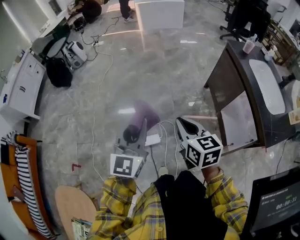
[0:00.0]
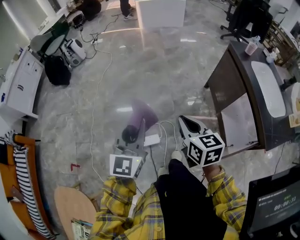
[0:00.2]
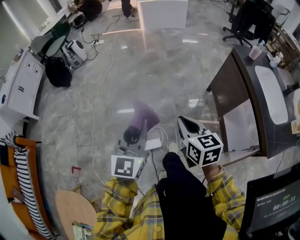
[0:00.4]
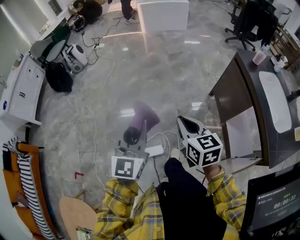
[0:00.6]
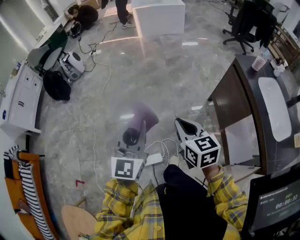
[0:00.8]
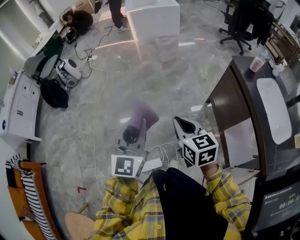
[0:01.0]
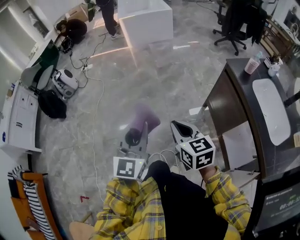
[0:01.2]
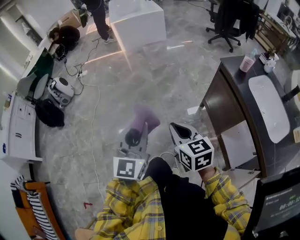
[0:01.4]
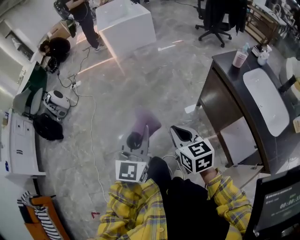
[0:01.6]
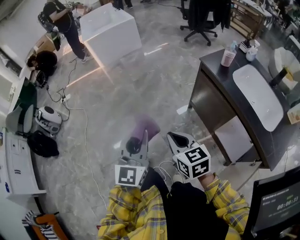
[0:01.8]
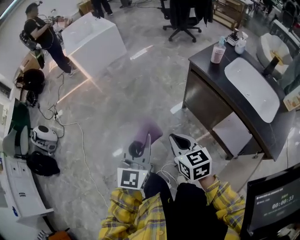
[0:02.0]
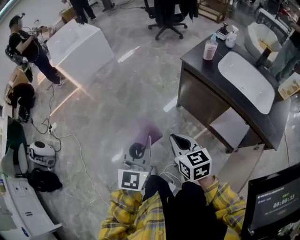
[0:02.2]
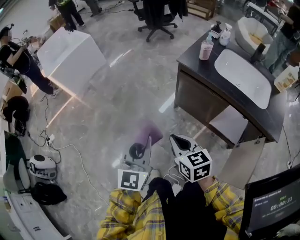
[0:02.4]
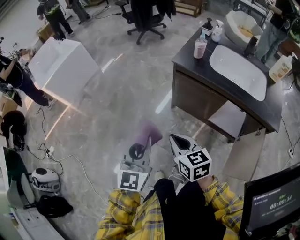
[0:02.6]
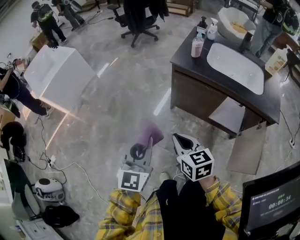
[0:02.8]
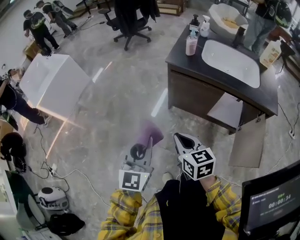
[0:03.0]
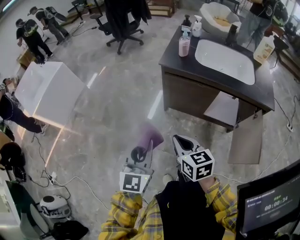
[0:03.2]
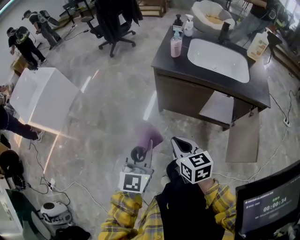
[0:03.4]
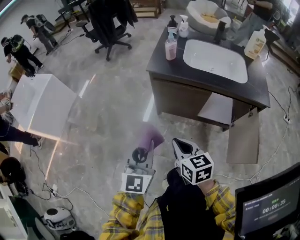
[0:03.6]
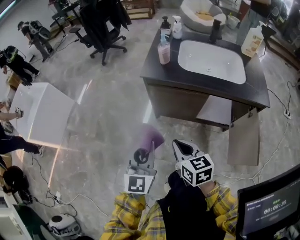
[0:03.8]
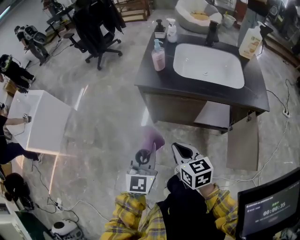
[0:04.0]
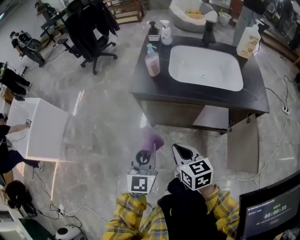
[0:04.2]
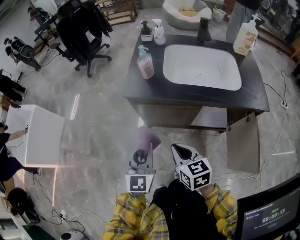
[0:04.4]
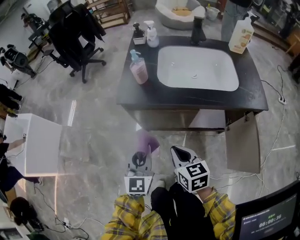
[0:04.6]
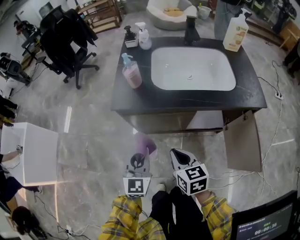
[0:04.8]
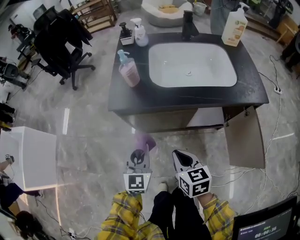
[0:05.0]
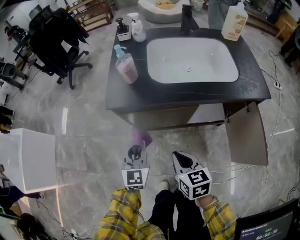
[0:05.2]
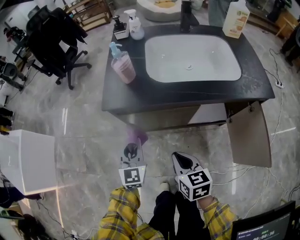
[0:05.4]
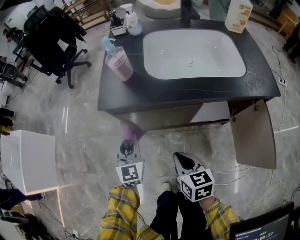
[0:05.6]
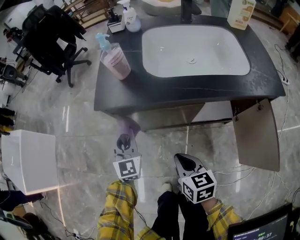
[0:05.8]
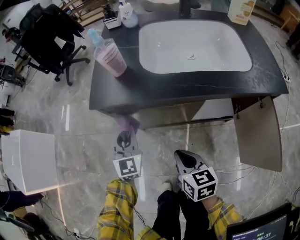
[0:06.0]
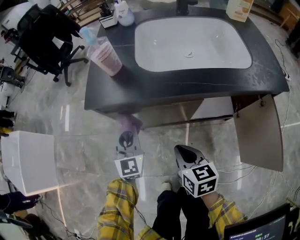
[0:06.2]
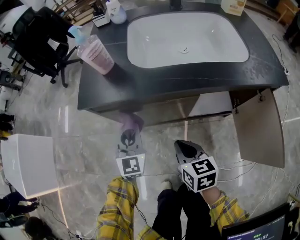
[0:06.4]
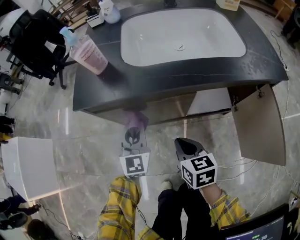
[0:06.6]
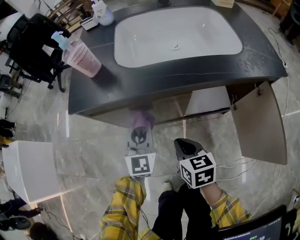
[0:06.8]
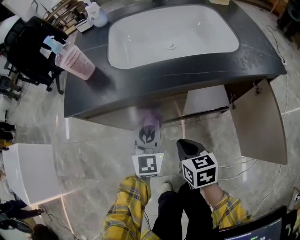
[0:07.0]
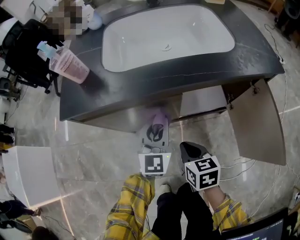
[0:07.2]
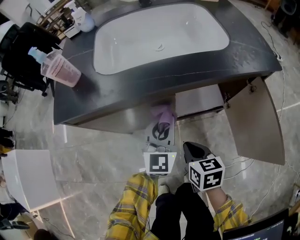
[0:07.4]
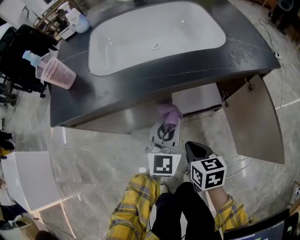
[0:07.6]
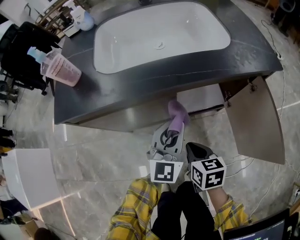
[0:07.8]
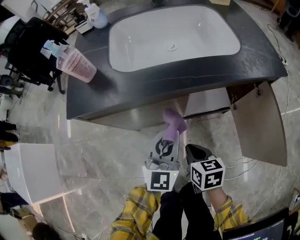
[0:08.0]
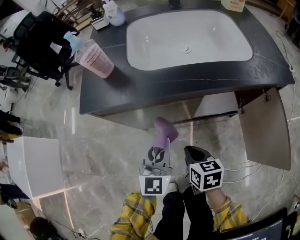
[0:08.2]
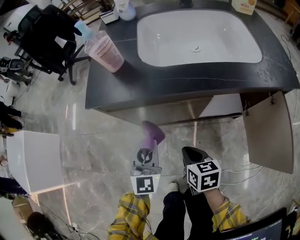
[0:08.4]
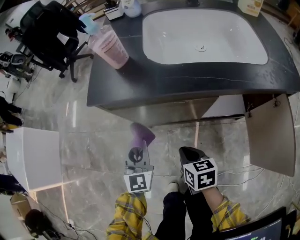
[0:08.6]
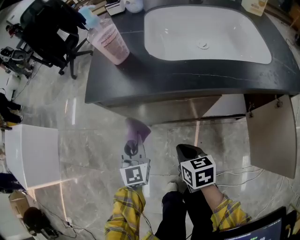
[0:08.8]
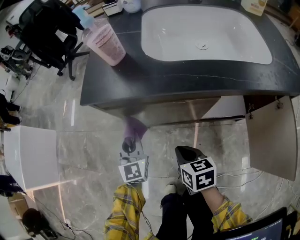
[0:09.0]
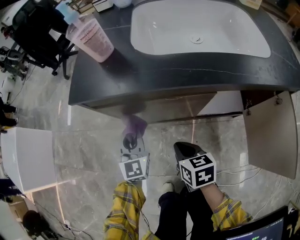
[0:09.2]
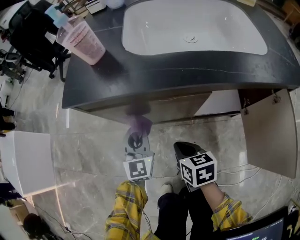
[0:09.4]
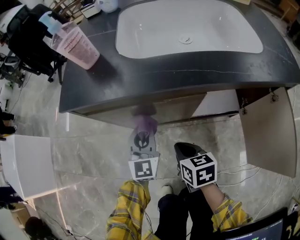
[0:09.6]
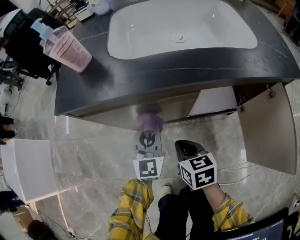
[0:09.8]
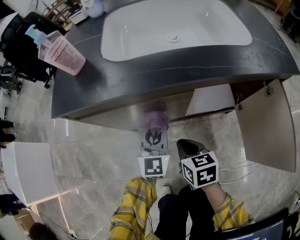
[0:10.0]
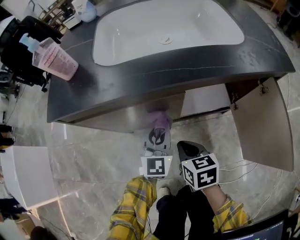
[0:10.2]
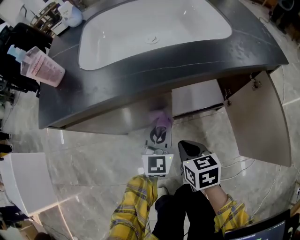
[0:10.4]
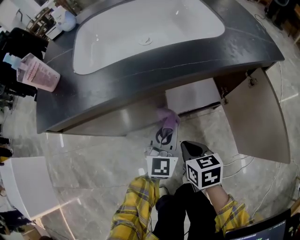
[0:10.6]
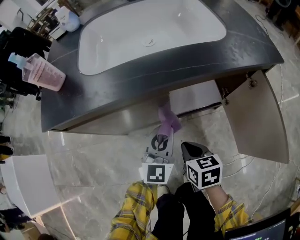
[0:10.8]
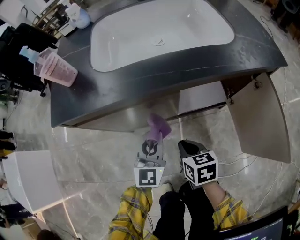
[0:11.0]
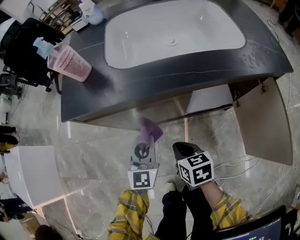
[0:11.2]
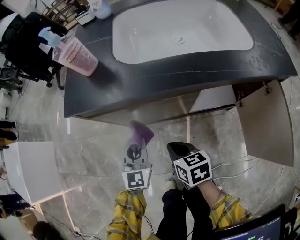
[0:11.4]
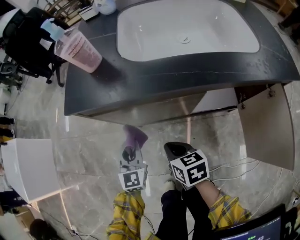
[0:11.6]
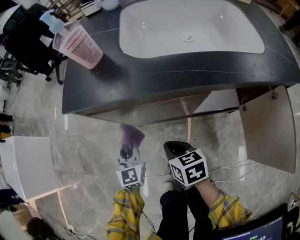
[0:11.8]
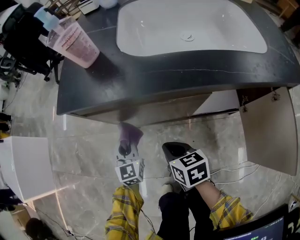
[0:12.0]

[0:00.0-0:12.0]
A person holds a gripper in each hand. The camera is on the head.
0.0 to 1.6 s: Both grippers move forward, approximately 30 cm.
1.6 to 3.0 s: The right gripper shifts by about 15 cm, and swivels about 50 degrees, while the left gripper moves about 20 cm, and swivels about 40 degrees.
3.0 to 4.4 s: The left gripper heads forward, to the right and downward, covering roughly 25 cm, while the right gripper moves forward and to the right, roughly 20 cm.
4.4 to 6.0 s: The left gripper moves forward and downward, some 25 cm. Meanwhile the right gripper is displaced downward by roughly 15 cm.
6.0 to 7.6 s: The left gripper goes some 30 cm to the right, and changes its angle by approximately 30 degrees, while the right gripper moves to the right and downward, some 20 cm.
7.6 to 9.0 s: The right gripper ends up some 15 cm from where it was. The left gripper shifts by roughly 30 cm, and changes its angle by some 40 degrees.
9.0 to 10.4 s: The right gripper moves to the right, roughly 15 cm; the left gripper shifts some 25 cm to the right, and swivels approximately 30 degrees.
10.4 to 12.0 s: The right gripper ends up some 15 cm from where it was, while the left gripper ends up some 25 cm from where it was, and turns by approximately 30 degrees.

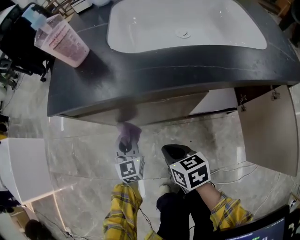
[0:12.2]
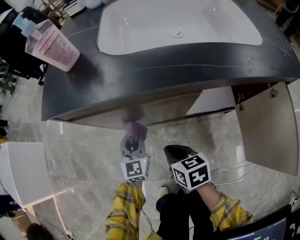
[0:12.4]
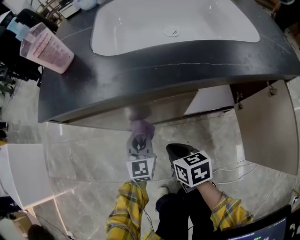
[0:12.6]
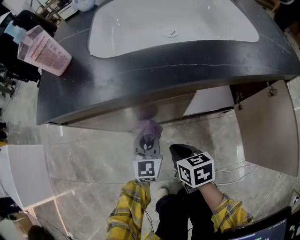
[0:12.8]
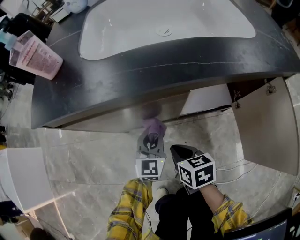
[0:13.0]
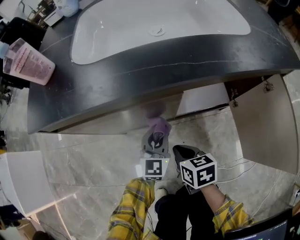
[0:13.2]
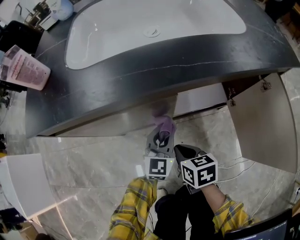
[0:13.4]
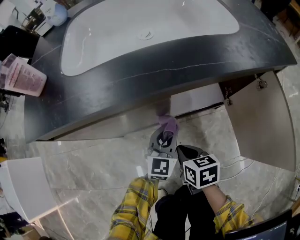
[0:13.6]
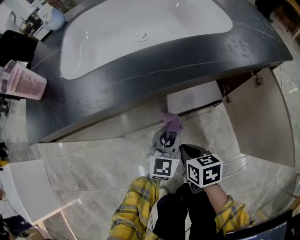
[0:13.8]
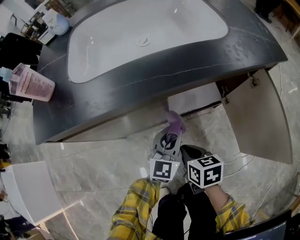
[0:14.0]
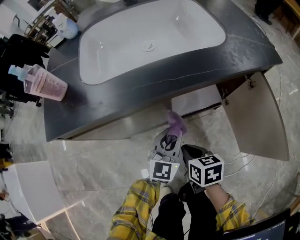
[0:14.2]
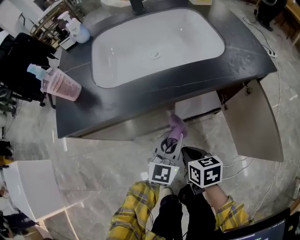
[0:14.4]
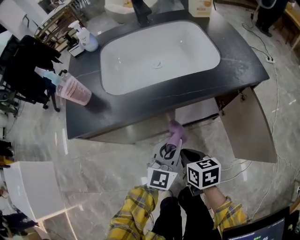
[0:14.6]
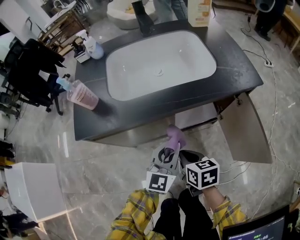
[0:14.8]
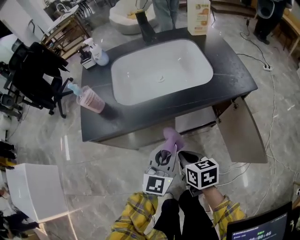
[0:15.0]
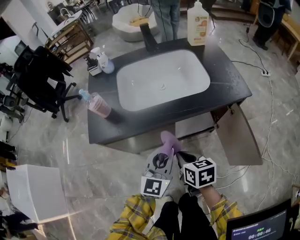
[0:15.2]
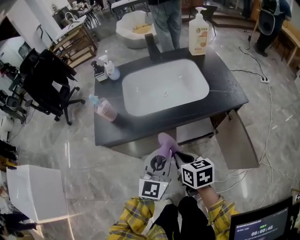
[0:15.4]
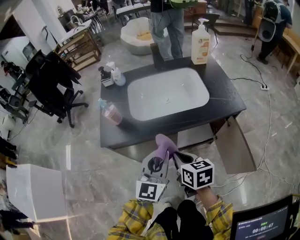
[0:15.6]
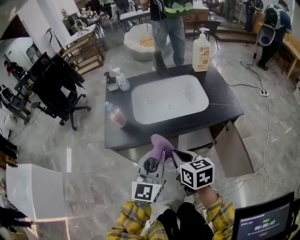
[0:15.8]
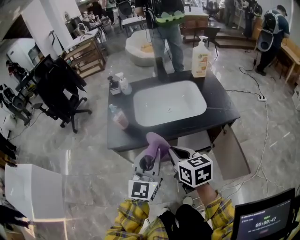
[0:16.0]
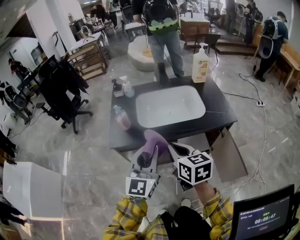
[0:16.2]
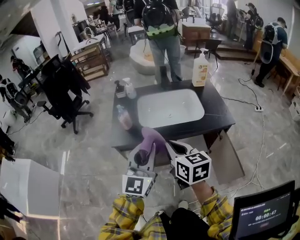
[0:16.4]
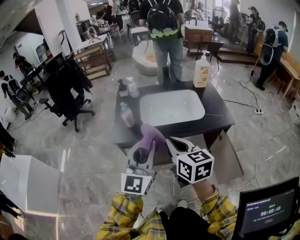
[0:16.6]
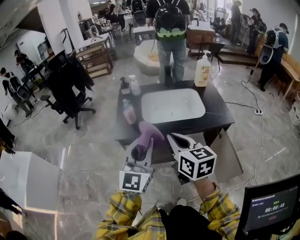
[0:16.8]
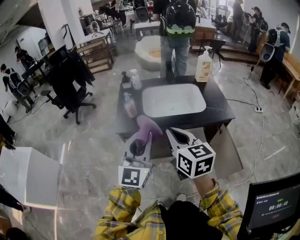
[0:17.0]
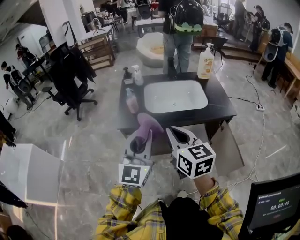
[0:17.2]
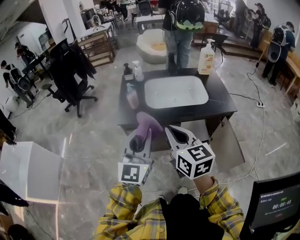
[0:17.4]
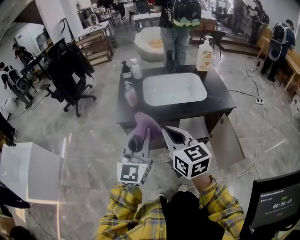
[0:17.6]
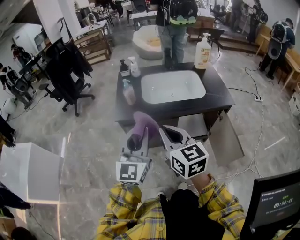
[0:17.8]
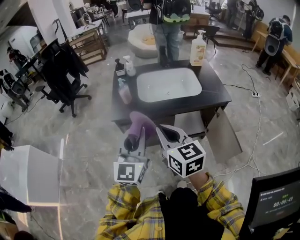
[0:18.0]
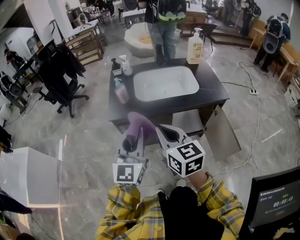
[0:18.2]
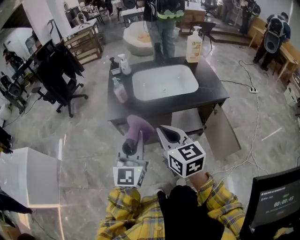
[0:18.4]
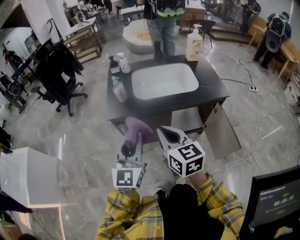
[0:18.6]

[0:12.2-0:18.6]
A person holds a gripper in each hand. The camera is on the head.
12.2 to 13.8 s: The left gripper shifts by approximately 30 cm, and rotates some 40 degrees, while the right gripper ends up approximately 15 cm from where it was, and turns by some 20 degrees.
13.8 to 15.4 s: The grippers both shift upward by roughly 30 cm.
15.4 to 17.0 s: The left gripper is displaced upward and to the left by roughly 25 cm, and rotates some 20 degrees, while the right gripper heads upward, covering roughly 30 cm, and turns by some 30 degrees.
17.0 to 18.6 s: The grippers both shift downward by some 5 cm.

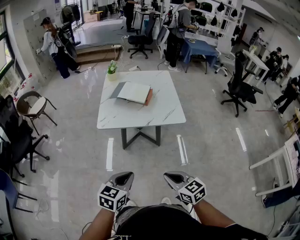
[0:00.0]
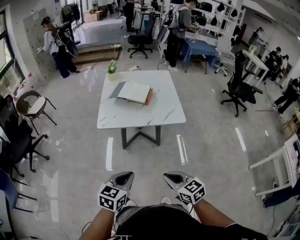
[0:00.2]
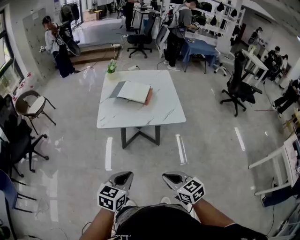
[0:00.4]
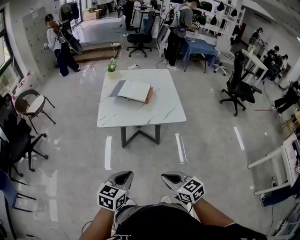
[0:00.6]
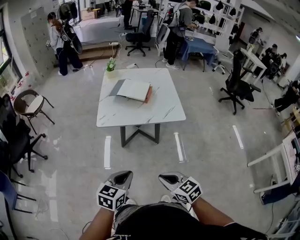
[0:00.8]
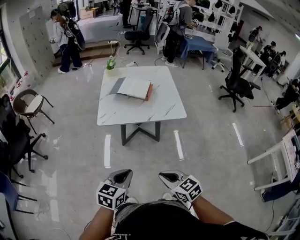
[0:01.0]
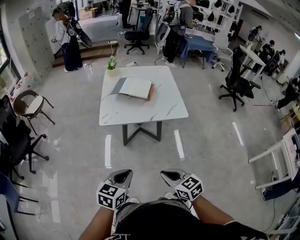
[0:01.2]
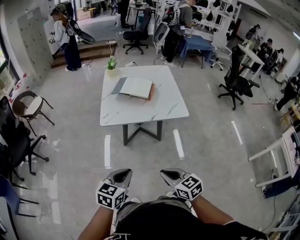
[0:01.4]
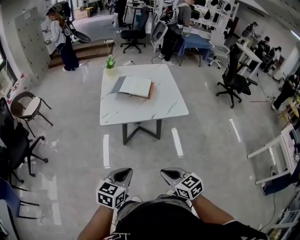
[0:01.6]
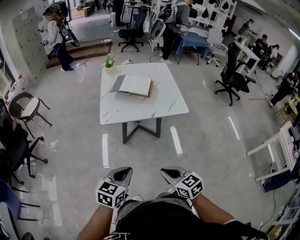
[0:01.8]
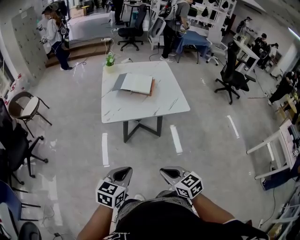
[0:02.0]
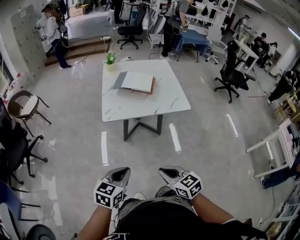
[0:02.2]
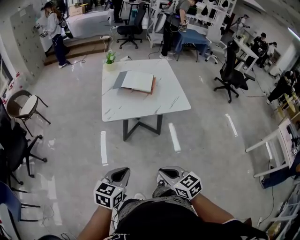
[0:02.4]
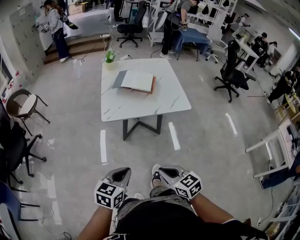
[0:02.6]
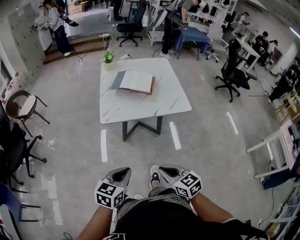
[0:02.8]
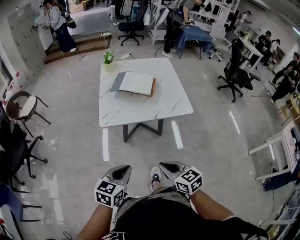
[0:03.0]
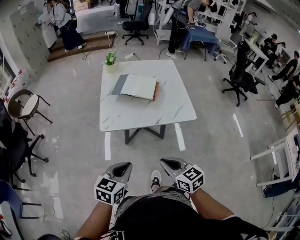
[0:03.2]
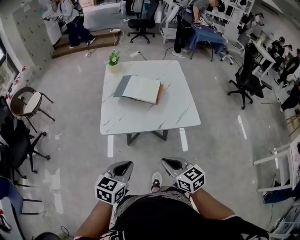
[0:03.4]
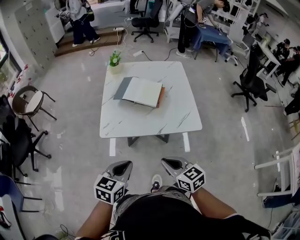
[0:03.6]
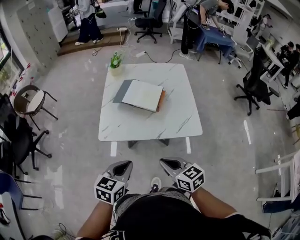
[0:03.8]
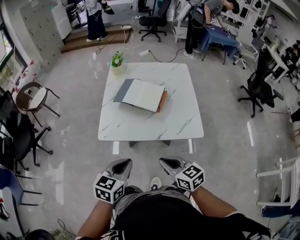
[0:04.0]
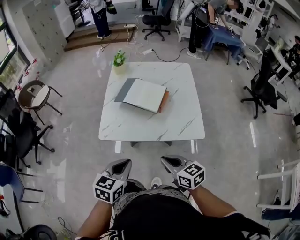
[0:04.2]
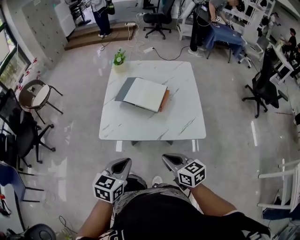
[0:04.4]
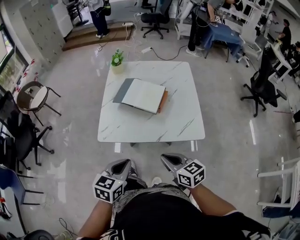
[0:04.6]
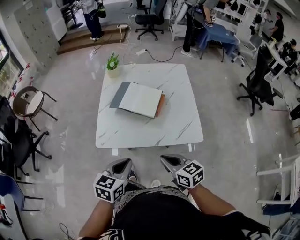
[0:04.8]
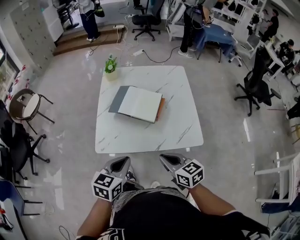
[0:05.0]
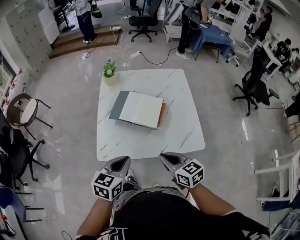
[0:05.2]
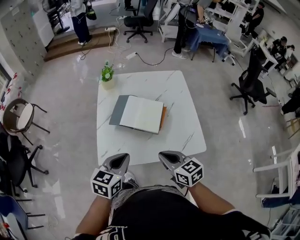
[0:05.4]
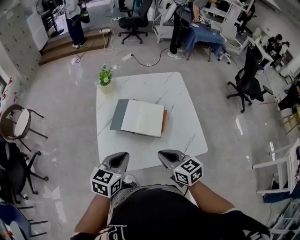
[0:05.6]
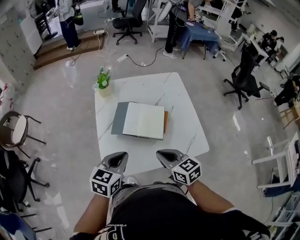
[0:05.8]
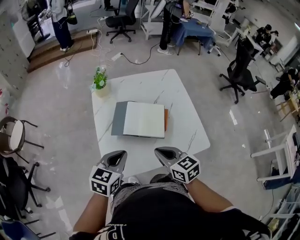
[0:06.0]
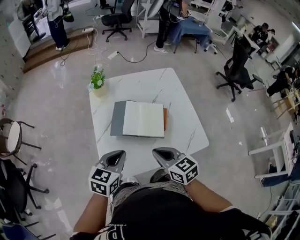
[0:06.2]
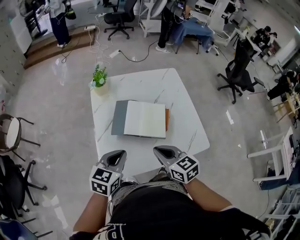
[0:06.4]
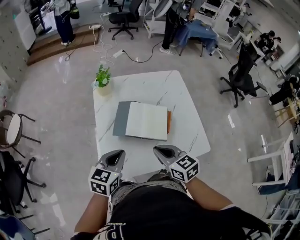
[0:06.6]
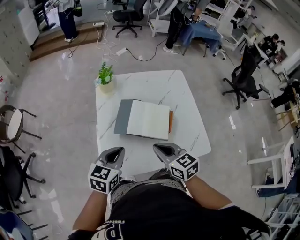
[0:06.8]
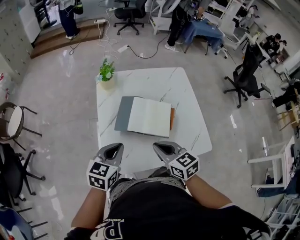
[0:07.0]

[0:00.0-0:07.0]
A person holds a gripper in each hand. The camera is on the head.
0.0 to 1.4 s: The two grippers go roughly 5 cm to the left.
1.4 to 2.8 s: The right gripper shifts approximately 5 cm to the left, while the left gripper moves some 5 cm.
2.8 to 4.2 s: The grippers both shift forward and to the right by approximately 25 cm.
4.2 to 5.6 s: Both grippers travel together forward, approximately 20 cm.
5.6 to 7.0 s: The right gripper shifts some 10 cm to the left and forward. Meanwhile the left gripper heads forward and to the left, covering roughly 10 cm.
